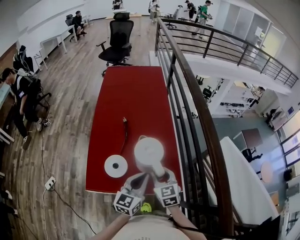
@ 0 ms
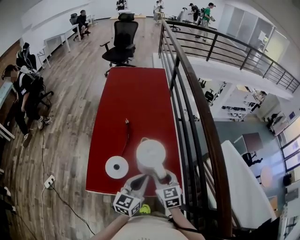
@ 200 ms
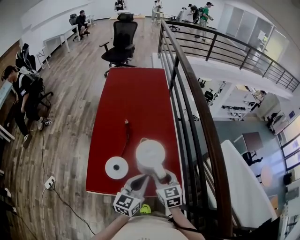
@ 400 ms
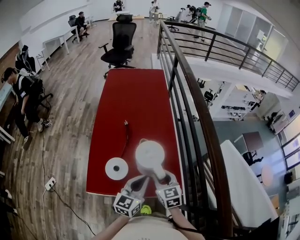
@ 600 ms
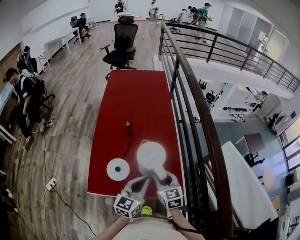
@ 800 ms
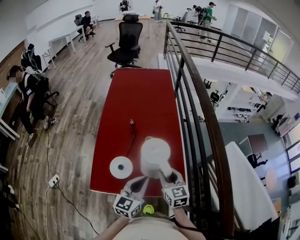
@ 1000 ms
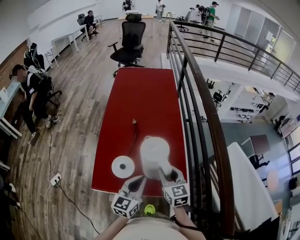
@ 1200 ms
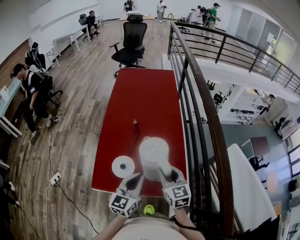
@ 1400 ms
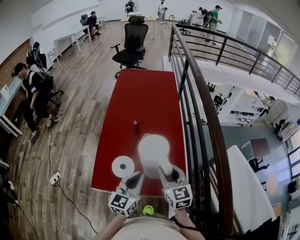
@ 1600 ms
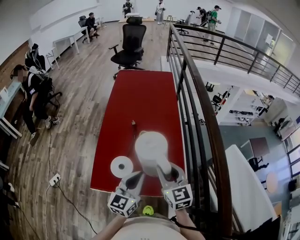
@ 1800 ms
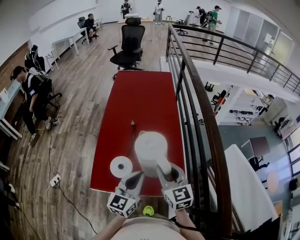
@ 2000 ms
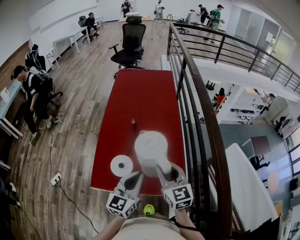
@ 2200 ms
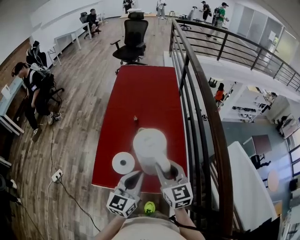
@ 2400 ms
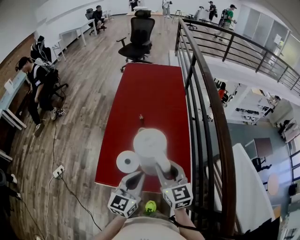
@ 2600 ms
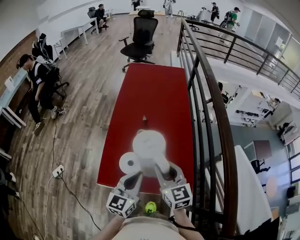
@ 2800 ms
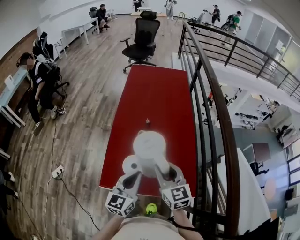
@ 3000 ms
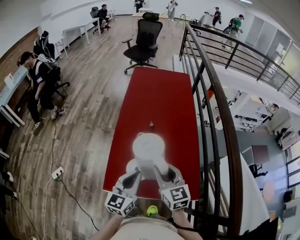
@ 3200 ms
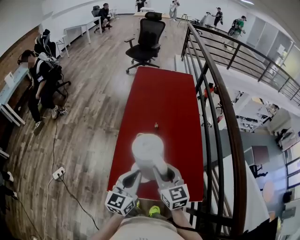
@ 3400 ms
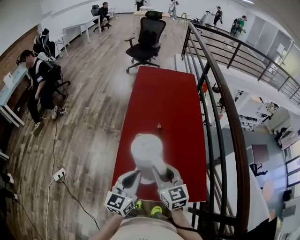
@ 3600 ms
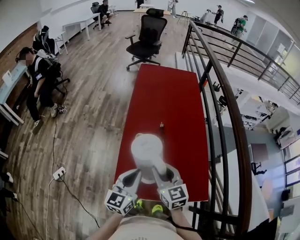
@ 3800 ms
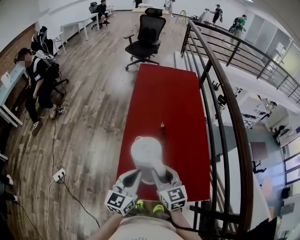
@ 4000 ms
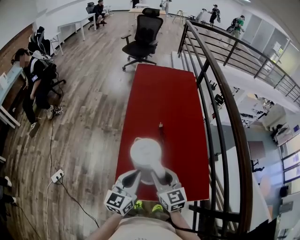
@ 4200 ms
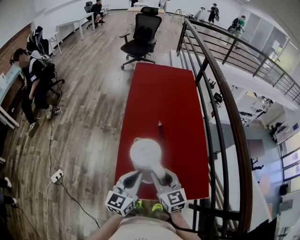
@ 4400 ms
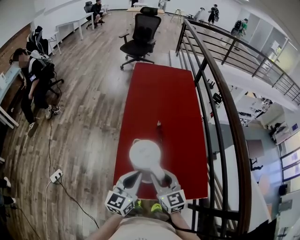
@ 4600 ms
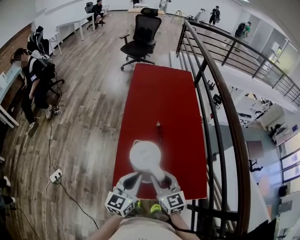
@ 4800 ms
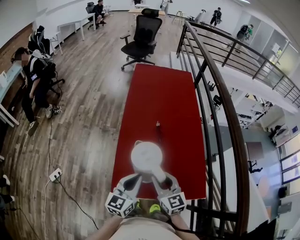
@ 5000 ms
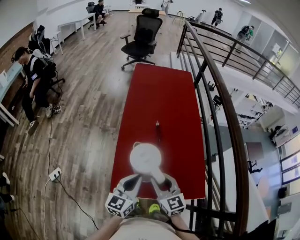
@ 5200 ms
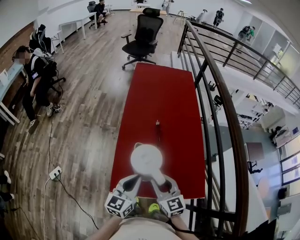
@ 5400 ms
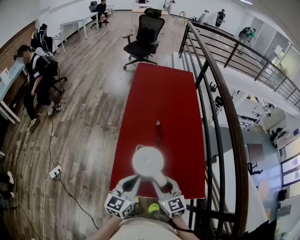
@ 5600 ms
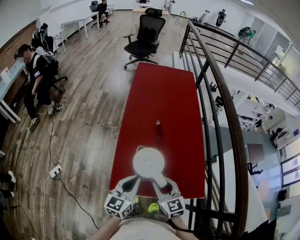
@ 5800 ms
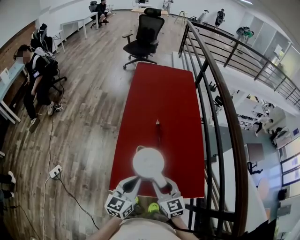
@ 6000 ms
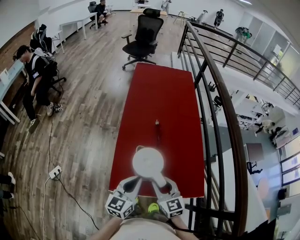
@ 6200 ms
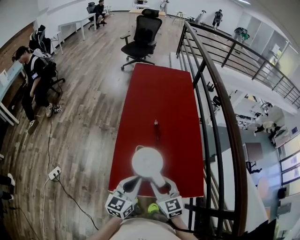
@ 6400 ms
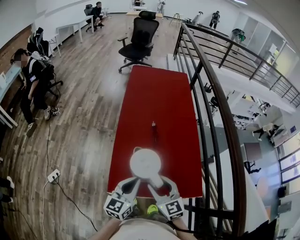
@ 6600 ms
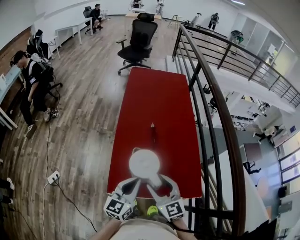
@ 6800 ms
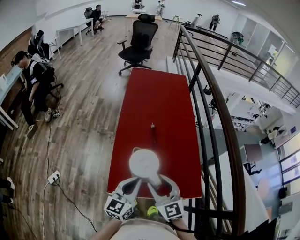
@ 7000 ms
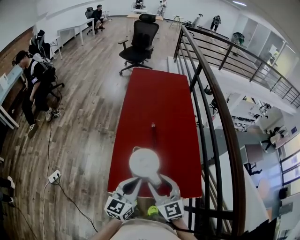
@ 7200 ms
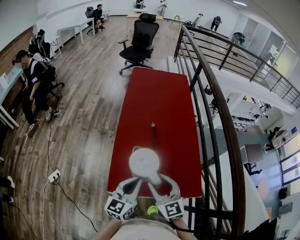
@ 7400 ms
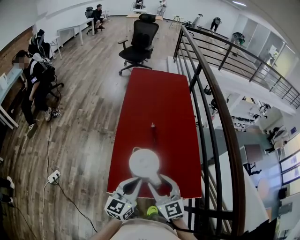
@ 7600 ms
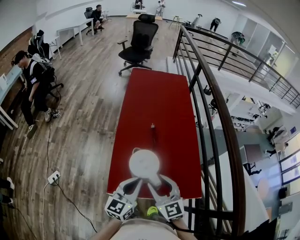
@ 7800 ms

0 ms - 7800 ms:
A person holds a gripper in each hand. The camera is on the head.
0 ms - 1600 ms: The right gripper travels upward by approximately 10 cm, while the left gripper shifts by roughly 5 cm.
1600 ms - 3200 ms: Both grippers move to the left, about 10 cm.
3200 ms - 4600 ms: The right gripper shifts some 10 cm to the left and downward. The left gripper heads to the left, covering some 5 cm.
4600 ms - 6200 ms: The right gripper shifts by roughly 5 cm.
6200 ms - 7800 ms: The right gripper moves upward, roughly 5 cm.

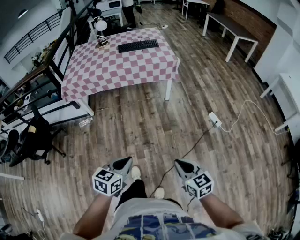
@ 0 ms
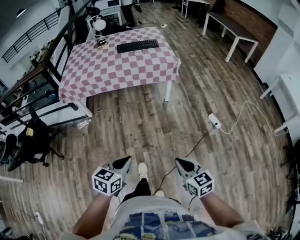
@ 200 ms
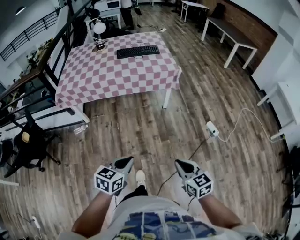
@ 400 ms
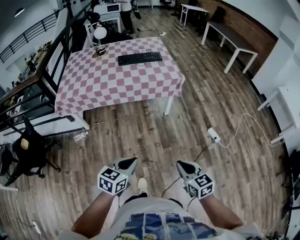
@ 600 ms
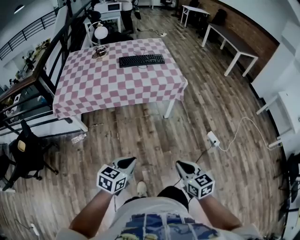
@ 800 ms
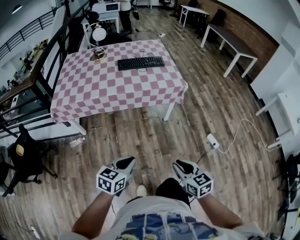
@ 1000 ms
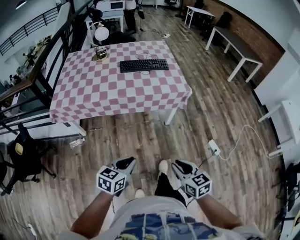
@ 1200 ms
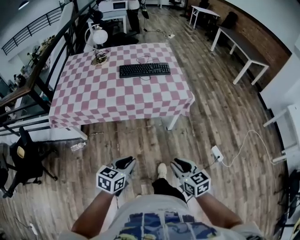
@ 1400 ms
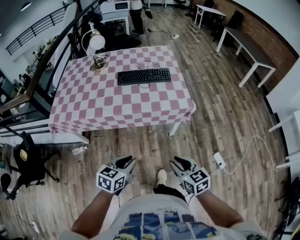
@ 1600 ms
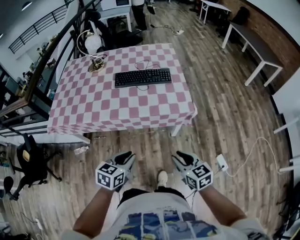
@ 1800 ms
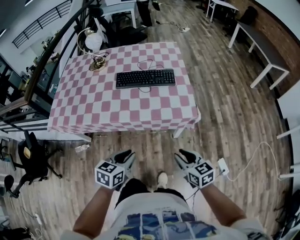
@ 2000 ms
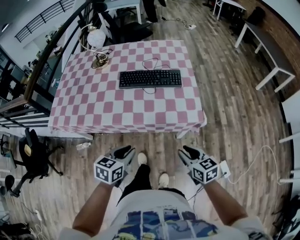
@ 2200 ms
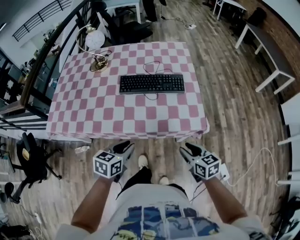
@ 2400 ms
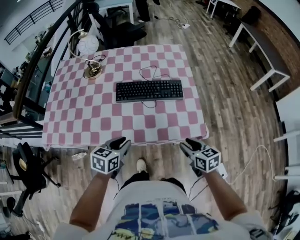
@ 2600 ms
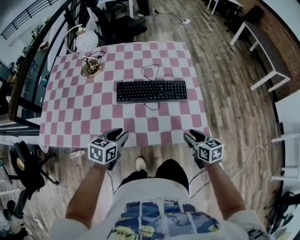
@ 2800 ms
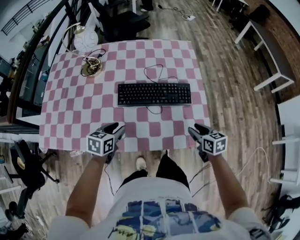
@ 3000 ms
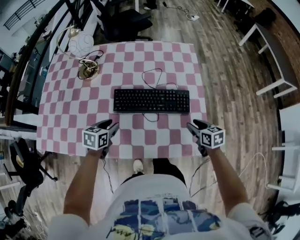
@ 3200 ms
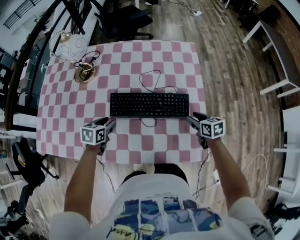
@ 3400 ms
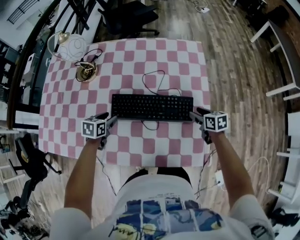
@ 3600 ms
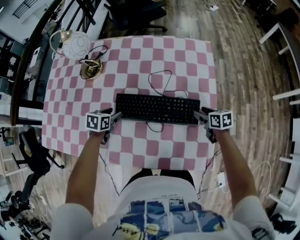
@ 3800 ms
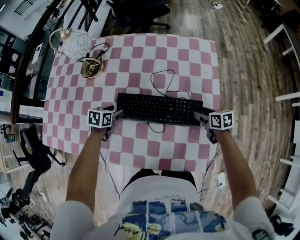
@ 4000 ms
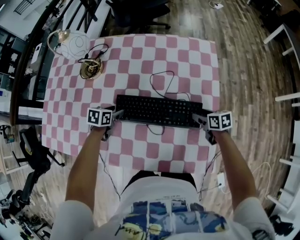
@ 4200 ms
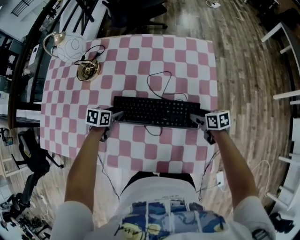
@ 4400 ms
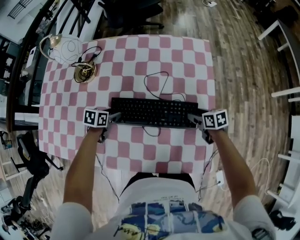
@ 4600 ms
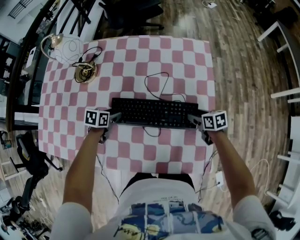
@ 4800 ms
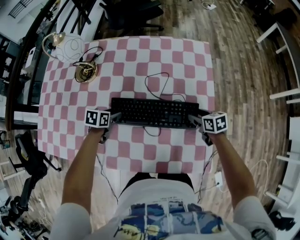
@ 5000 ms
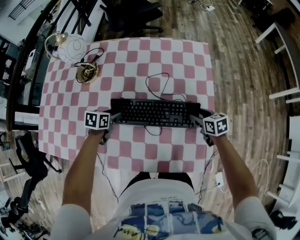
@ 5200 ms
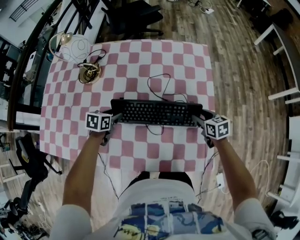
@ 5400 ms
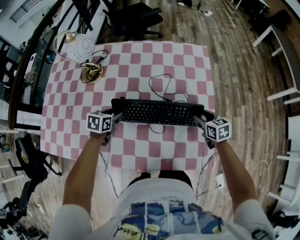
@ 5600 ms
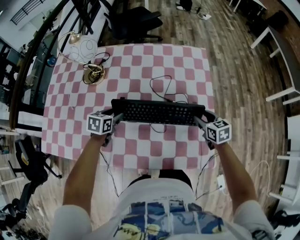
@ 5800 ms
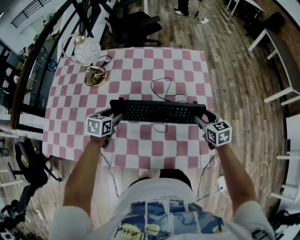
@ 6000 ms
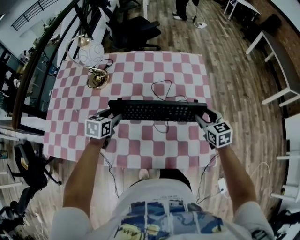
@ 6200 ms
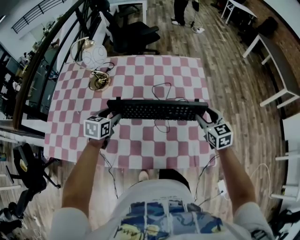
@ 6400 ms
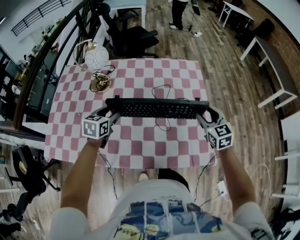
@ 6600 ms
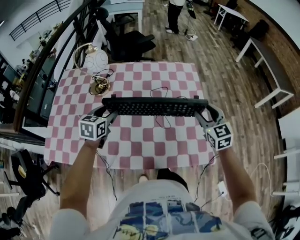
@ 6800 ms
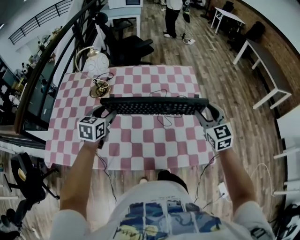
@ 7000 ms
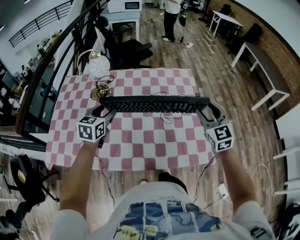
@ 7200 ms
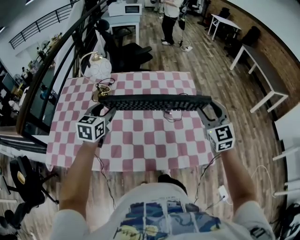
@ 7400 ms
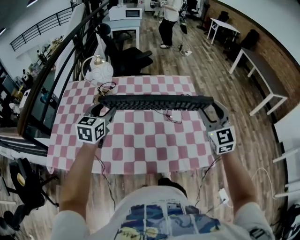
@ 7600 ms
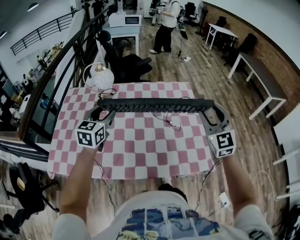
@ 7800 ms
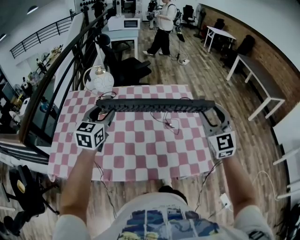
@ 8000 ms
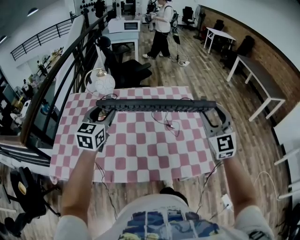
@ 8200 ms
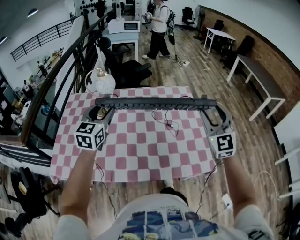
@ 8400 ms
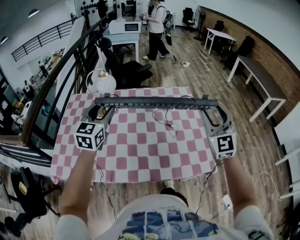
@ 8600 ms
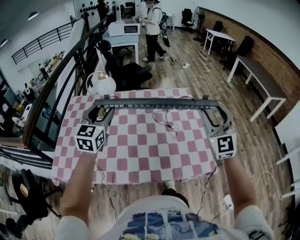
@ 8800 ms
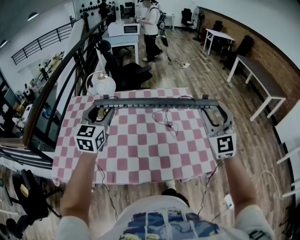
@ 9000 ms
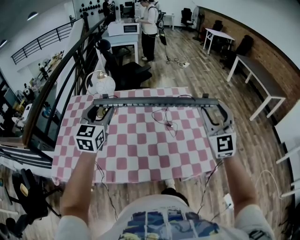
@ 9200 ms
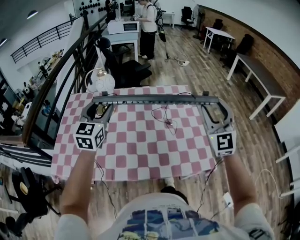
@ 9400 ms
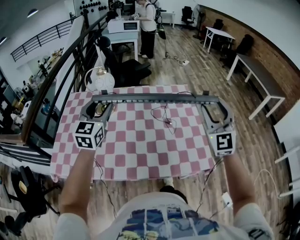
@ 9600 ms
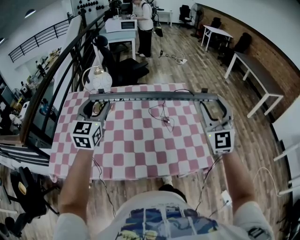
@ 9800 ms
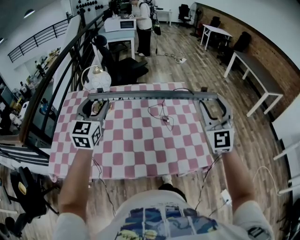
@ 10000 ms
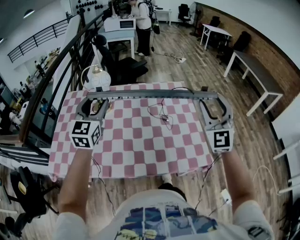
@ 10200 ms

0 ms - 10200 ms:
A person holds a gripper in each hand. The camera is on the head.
0 ms - 1400 ms: The pair of grippers is taken forward, some 50 cm.
1400 ms - 3000 ms: The pair of grippers is taken forward, some 60 cm.
3000 ms - 4400 ms: The two grippers go some 25 cm forward and downward. The right gripper swivels some 20 degrees, and opens. The left gripper opens.
4400 ms - 5800 ms: Both grippers move upward, some 10 cm. The right gripper rotates about 20 degrees.
5800 ms - 7200 ms: Both grippers travel together upward, approximately 25 cm. The left gripper changes its angle by approximately 30 degrees. Meanwhile the right gripper swivels roughly 40 degrees.
7200 ms - 8800 ms: The left gripper goes about 15 cm upward, and rotates roughly 20 degrees. The right gripper is displaced upward and backward by roughly 15 cm, and swivels approximately 20 degrees.
8800 ms - 10200 ms: The grippers stay close to where they were, moving slightly.

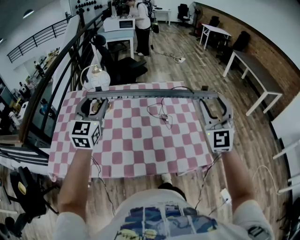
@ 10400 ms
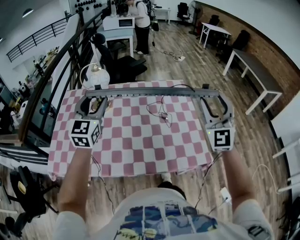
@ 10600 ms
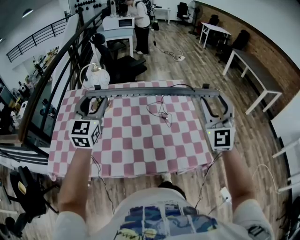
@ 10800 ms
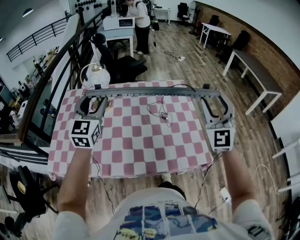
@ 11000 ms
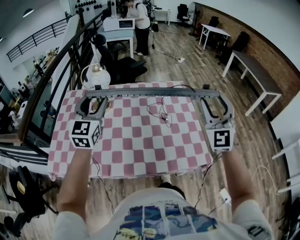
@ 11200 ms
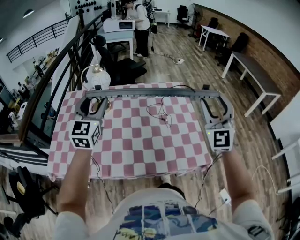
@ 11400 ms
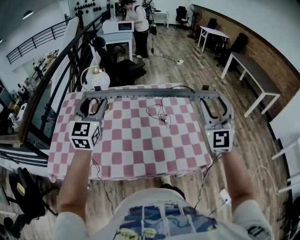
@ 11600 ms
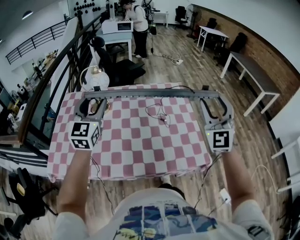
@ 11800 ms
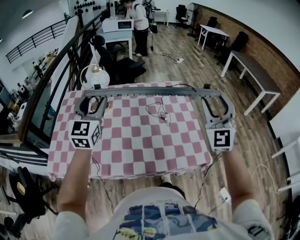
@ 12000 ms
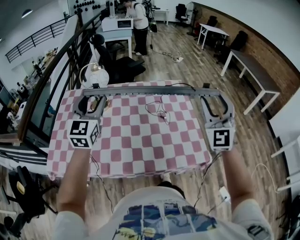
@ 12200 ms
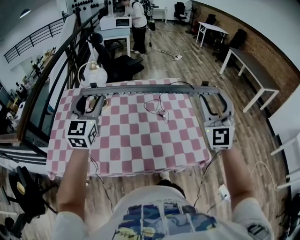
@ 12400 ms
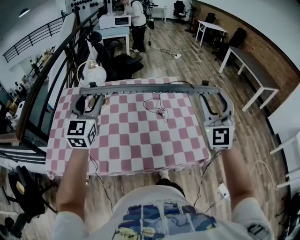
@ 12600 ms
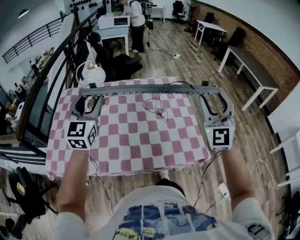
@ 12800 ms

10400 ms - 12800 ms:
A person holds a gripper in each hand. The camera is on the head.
10400 ms - 12800 ms: The grippers make only small movements.

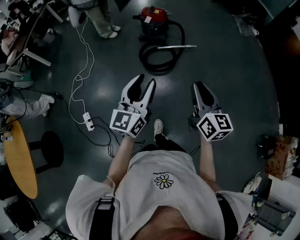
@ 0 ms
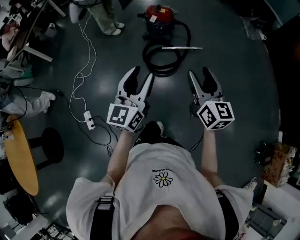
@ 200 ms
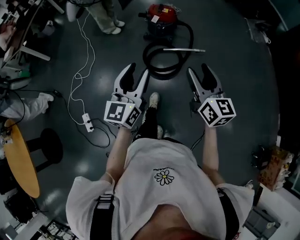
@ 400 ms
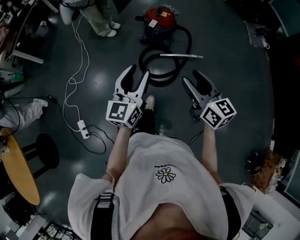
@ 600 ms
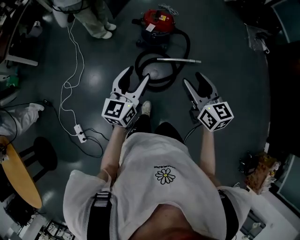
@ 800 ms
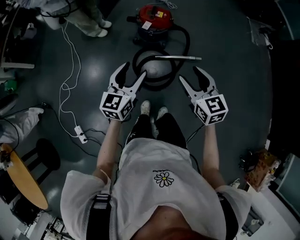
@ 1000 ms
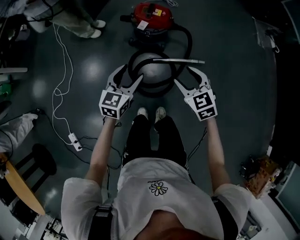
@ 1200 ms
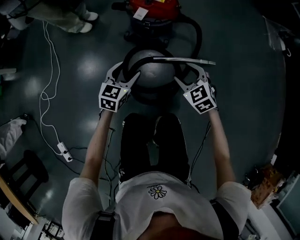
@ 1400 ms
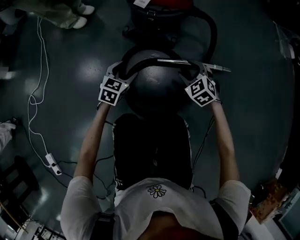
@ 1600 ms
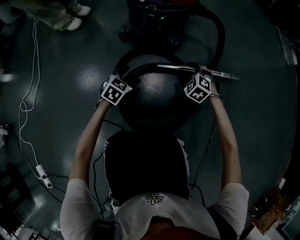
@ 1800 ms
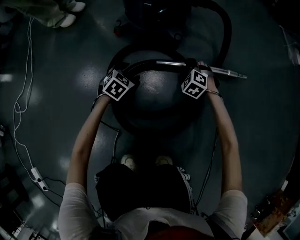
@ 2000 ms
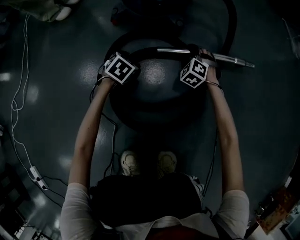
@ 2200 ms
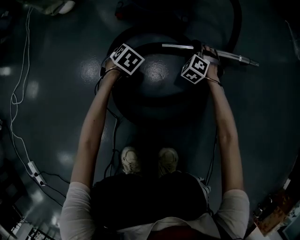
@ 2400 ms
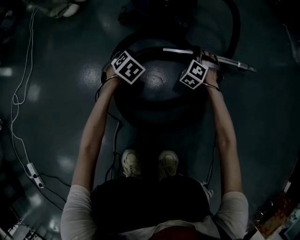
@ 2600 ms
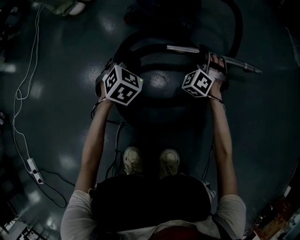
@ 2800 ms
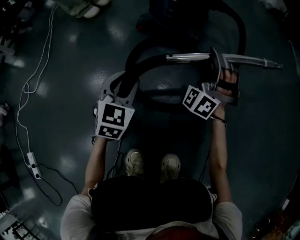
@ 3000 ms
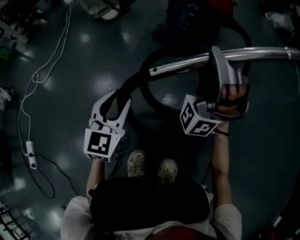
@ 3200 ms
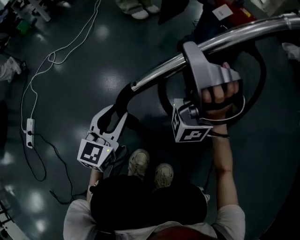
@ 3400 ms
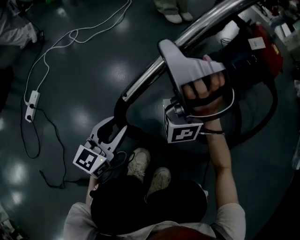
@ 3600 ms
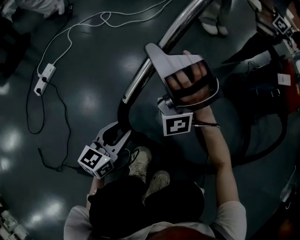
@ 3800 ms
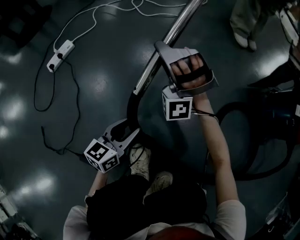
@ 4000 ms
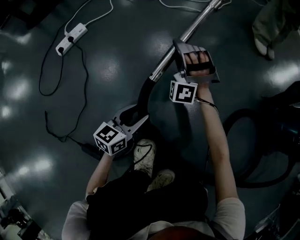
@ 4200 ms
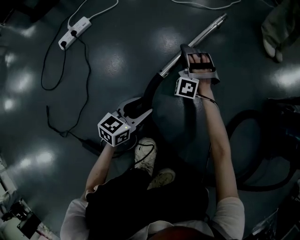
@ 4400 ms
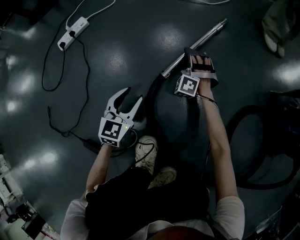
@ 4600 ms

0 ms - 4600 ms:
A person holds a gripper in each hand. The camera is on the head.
0 ms - 1600 ms: Both grippers are carried forward, about 70 cm. The grippers both shift downward by approximately 70 cm. The left gripper points its fingers approximately 40 degrees further downward, and opens; the right gripper tips its fingers downward by some 40 degrees, and opens its fingers.
1600 ms - 3000 ms: The left gripper moves backward, approximately 10 cm, travels downward and back again, about 25 cm each way, turns by some 20 degrees, and closes. Meanwhile the right gripper goes downward and returns, approximately 25 cm each way, and points its fingers about 50 degrees further upward.
3000 ms - 4600 ms: The two grippers travel together, approximately 60 cm. The left gripper turns by approximately 70 degrees. Meanwhile the right gripper angles its fingers downward, by about 30 degrees.
